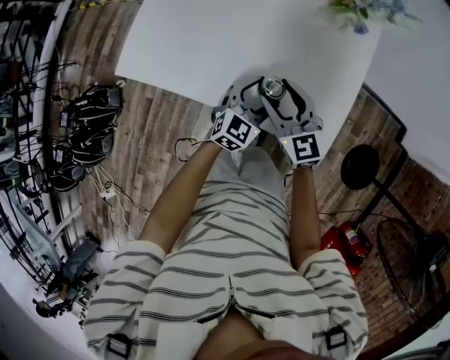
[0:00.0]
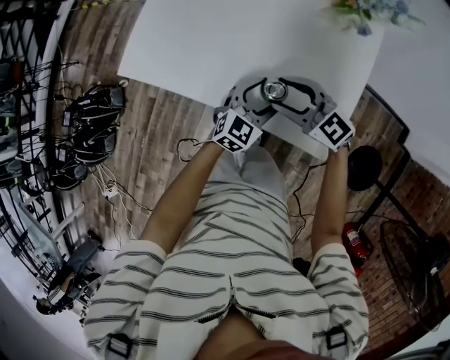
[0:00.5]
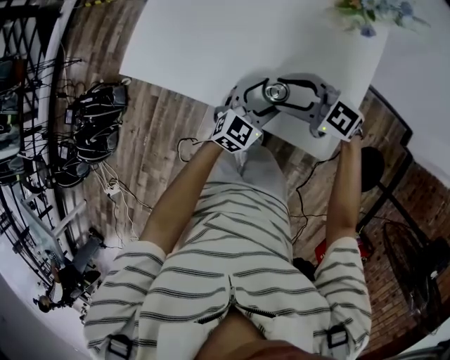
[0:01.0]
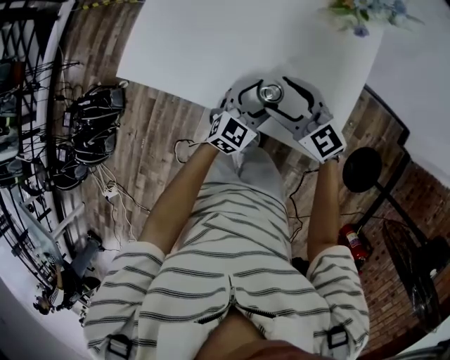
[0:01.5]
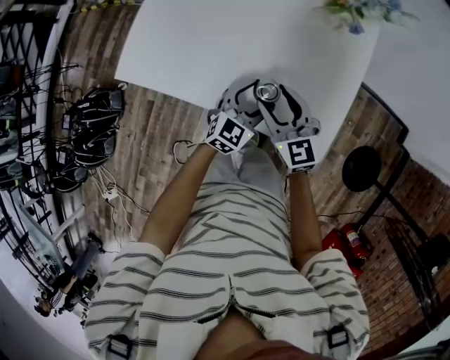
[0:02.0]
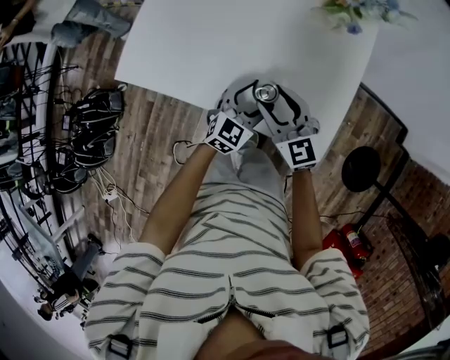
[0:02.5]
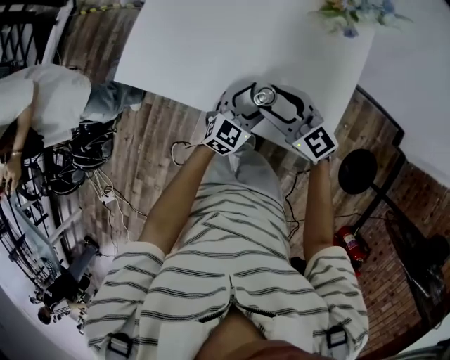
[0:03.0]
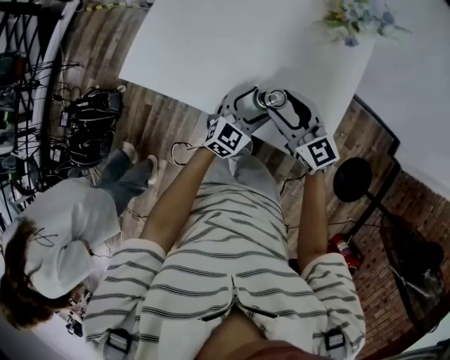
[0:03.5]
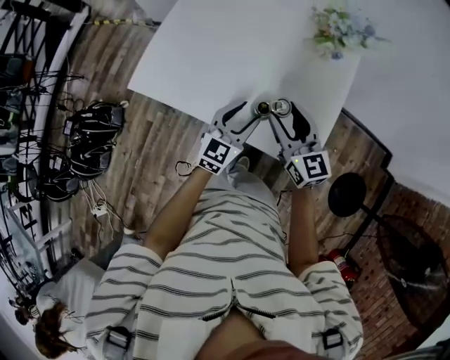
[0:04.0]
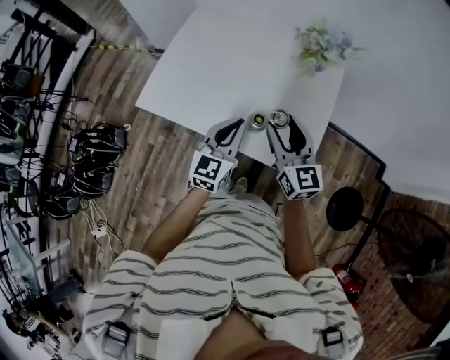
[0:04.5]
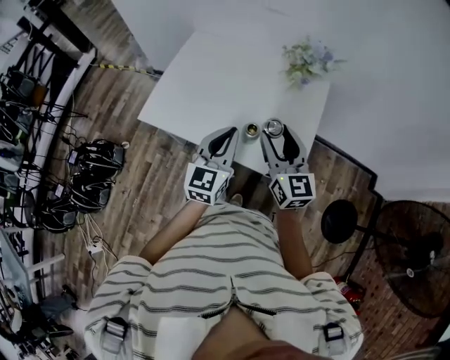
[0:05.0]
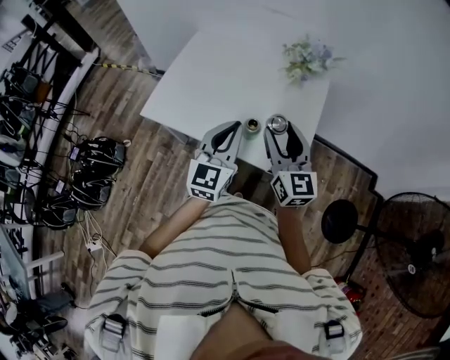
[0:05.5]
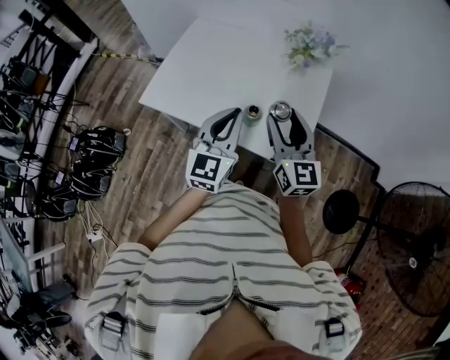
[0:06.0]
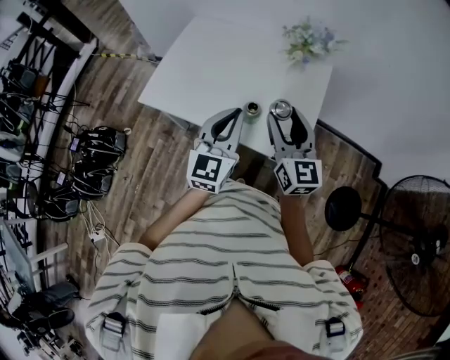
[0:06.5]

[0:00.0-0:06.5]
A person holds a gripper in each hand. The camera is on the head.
0:02.0 to 0:04.5: The two grippers go some 15 cm upward. The left gripper turns by approximately 30 degrees, and closes its fingers.
0:04.5 to 0:06.5: Both grippers travel together upward and backward, roughly 10 cm.

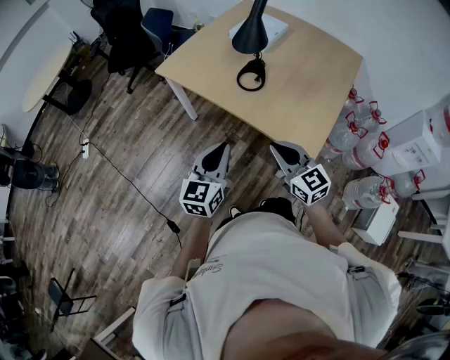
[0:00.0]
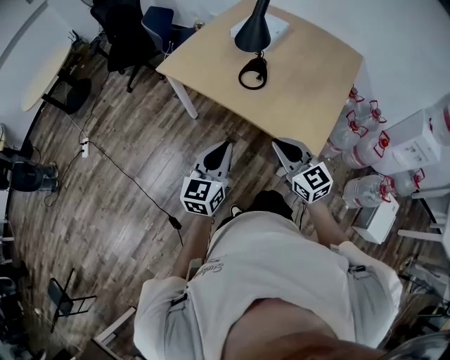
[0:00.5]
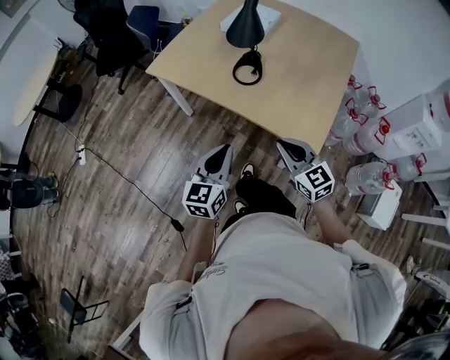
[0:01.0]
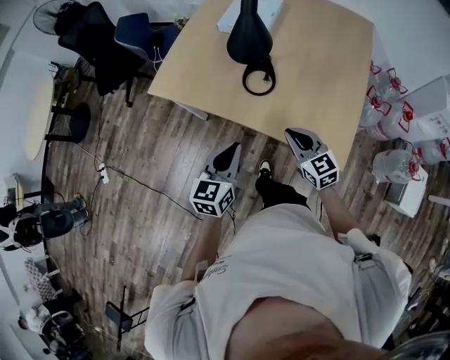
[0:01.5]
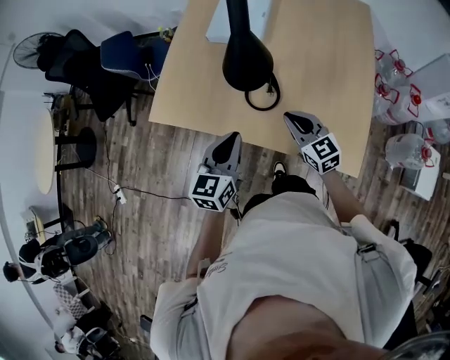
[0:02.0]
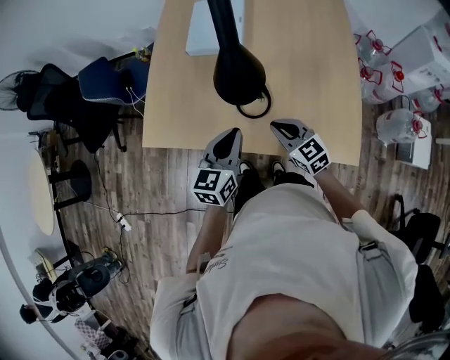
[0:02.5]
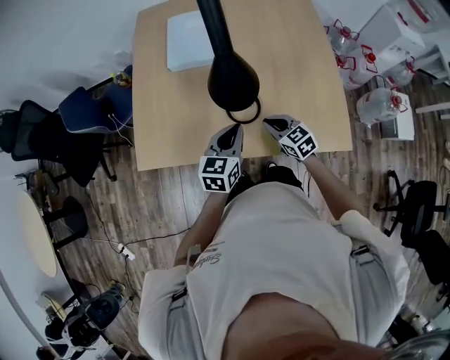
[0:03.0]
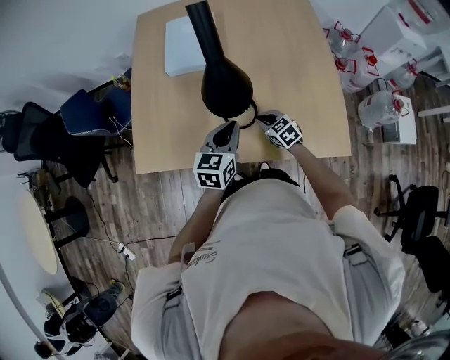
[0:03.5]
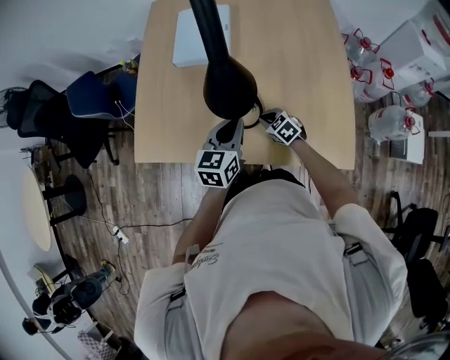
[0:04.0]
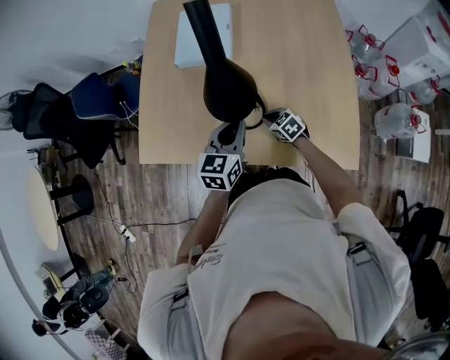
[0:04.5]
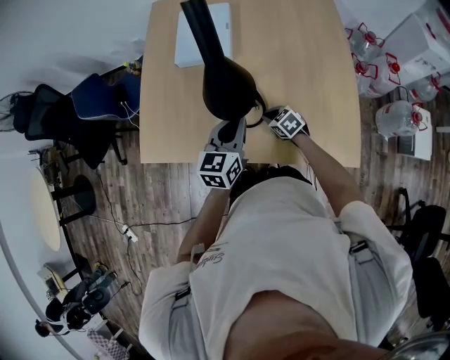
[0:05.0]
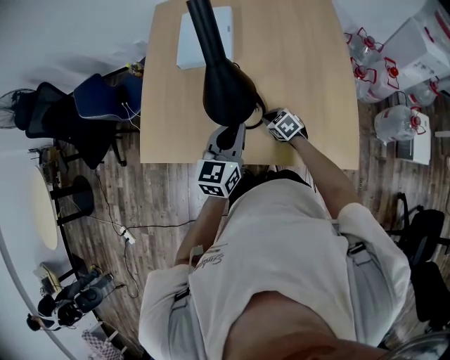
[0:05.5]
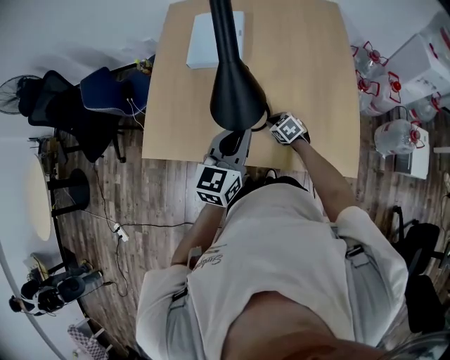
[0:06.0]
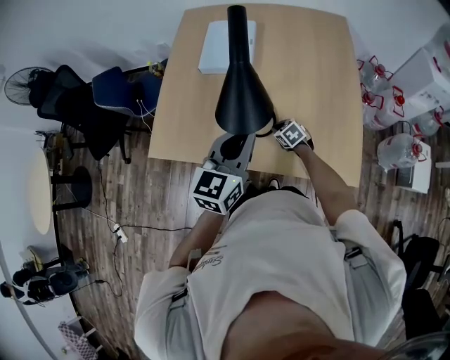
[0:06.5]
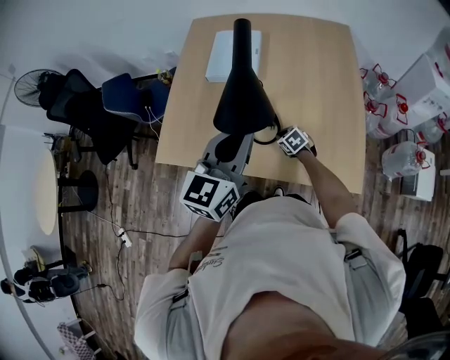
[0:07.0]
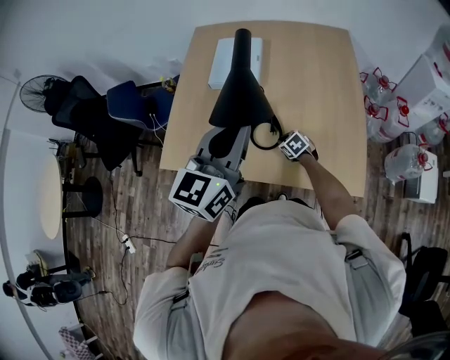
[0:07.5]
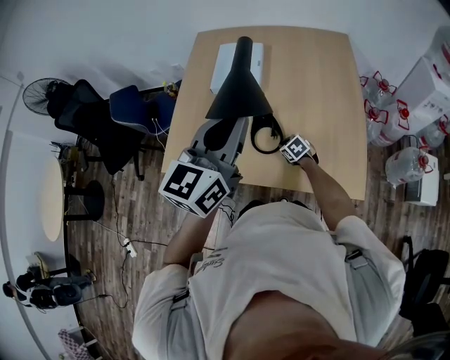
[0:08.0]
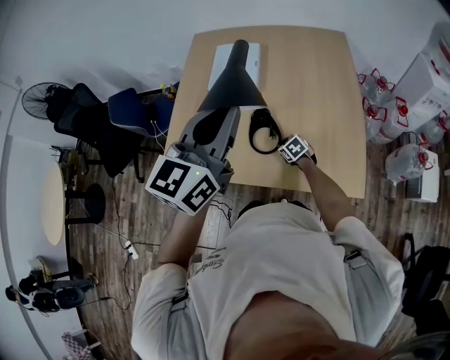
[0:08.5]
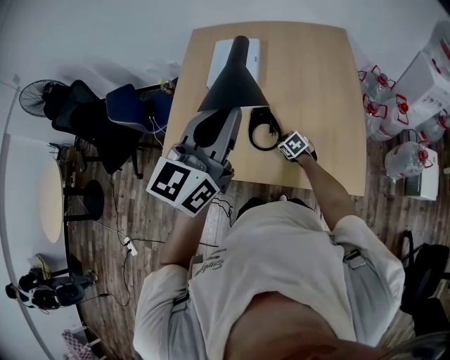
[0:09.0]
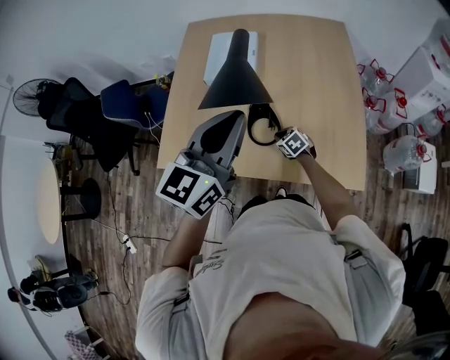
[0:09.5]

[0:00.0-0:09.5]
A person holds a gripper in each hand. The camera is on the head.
0:00.0 to 0:02.0: Both grippers move forward, approximately 30 cm. The left gripper changes its angle by approximately 20 degrees.
0:02.0 to 0:04.0: The left gripper is displaced forward and downward by some 15 cm; the right gripper moves downward and forward, some 20 cm, and tips its fingers downward by some 30 degrees.
0:04.0 to 0:05.5: The grippers stay close to where they were, moving slightly.
0:05.5 to 0:07.5: The left gripper is displaced upward by about 20 cm.
0:07.5 to 0:09.5: The grippers move only a little.

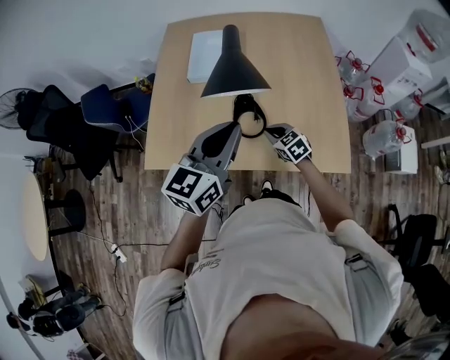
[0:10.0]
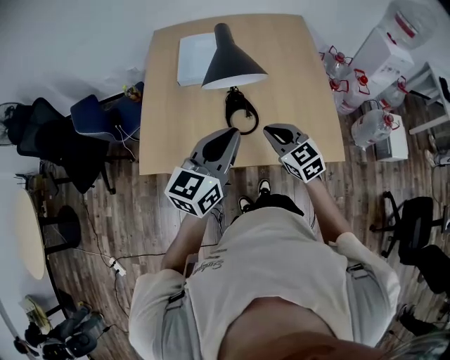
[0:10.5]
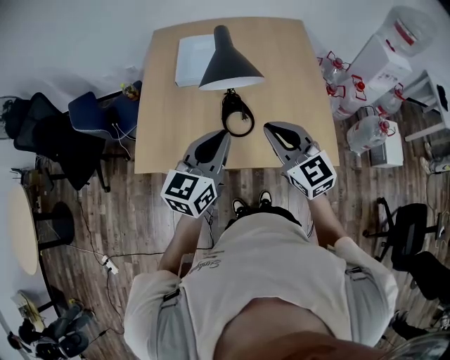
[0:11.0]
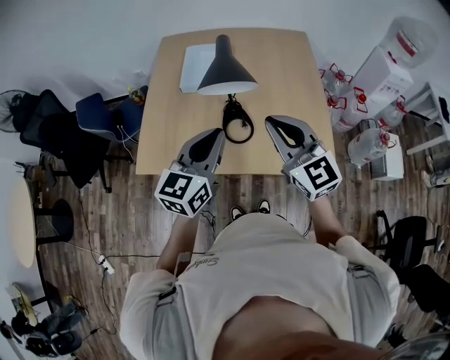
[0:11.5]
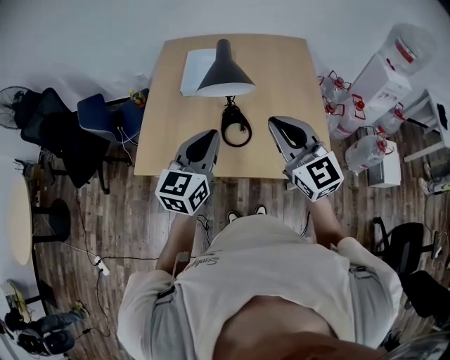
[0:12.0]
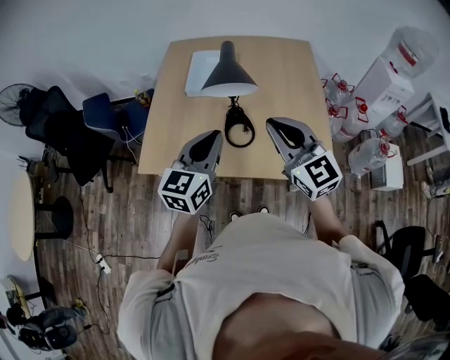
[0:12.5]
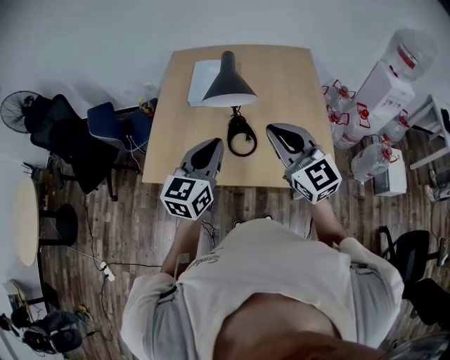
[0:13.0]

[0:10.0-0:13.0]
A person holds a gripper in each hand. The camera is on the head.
0:10.0 to 0:11.5: The right gripper shifts approximately 35 cm upward, and points its fingers roughly 40 degrees further upward.
0:11.5 to 0:13.0: The grippers make only small movements.

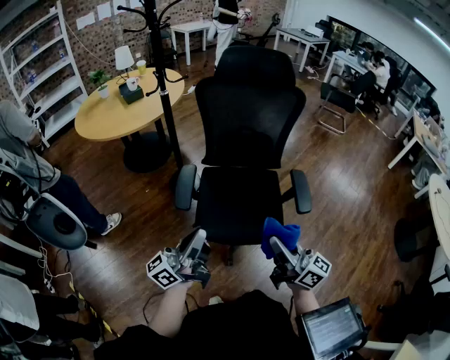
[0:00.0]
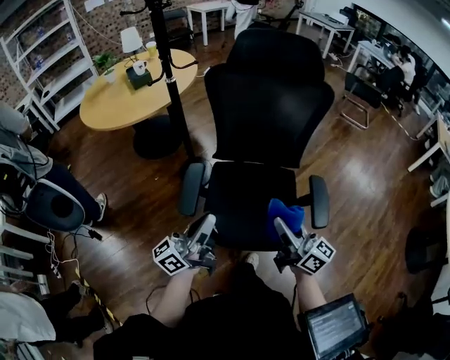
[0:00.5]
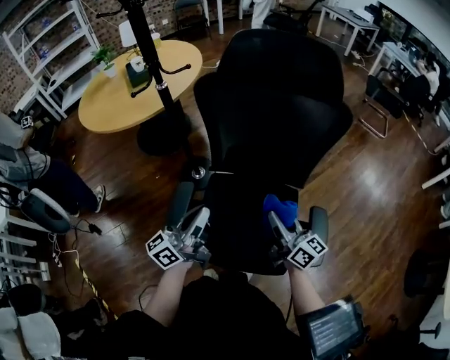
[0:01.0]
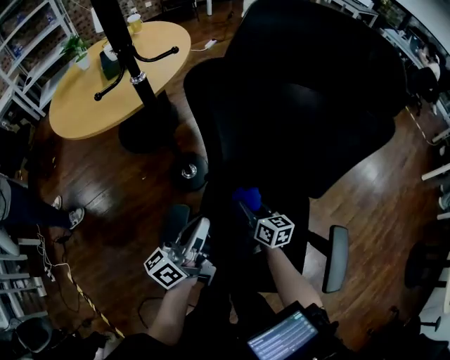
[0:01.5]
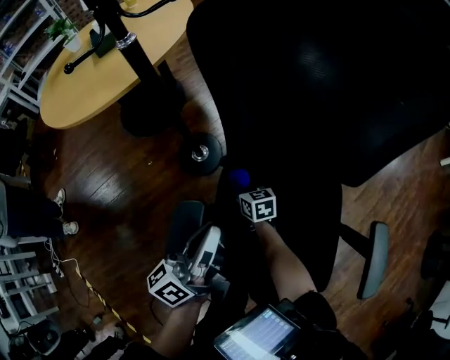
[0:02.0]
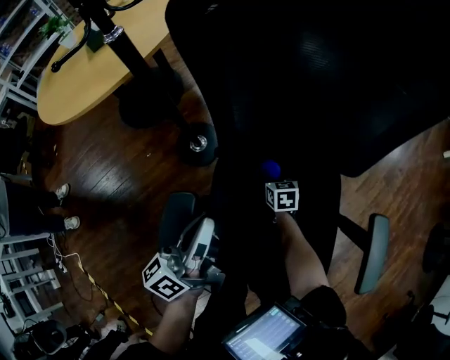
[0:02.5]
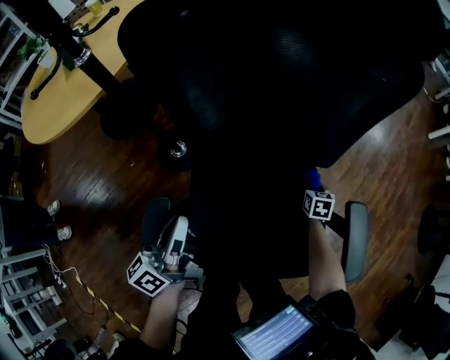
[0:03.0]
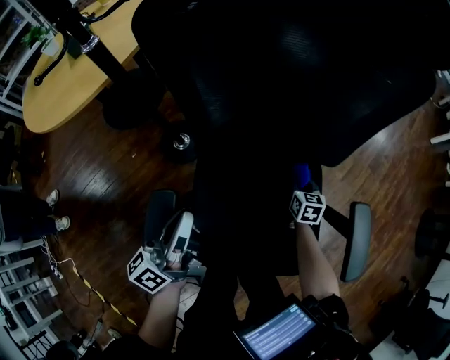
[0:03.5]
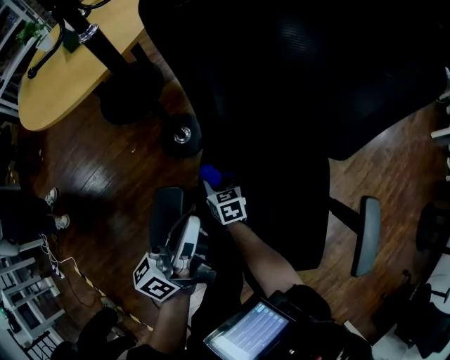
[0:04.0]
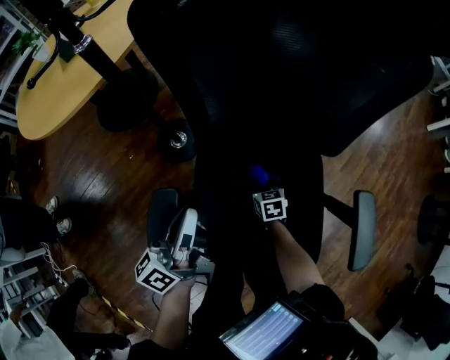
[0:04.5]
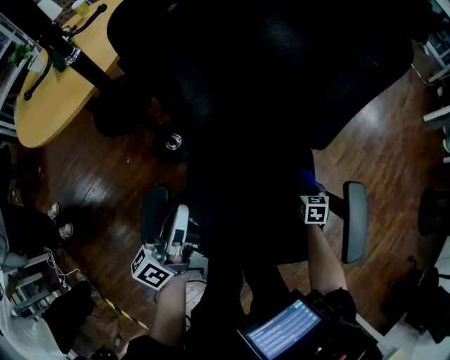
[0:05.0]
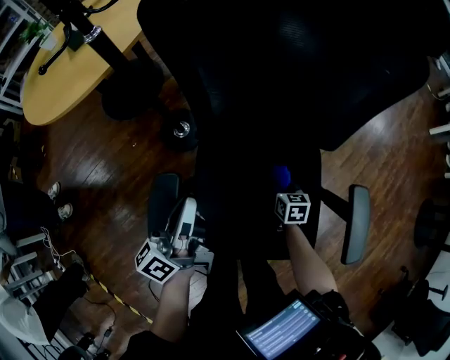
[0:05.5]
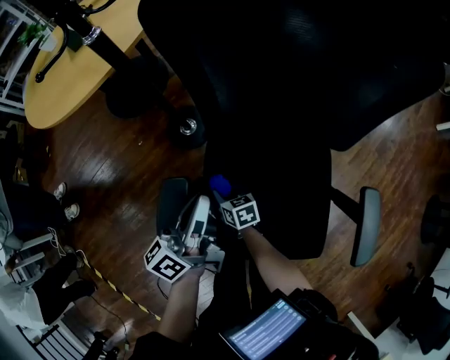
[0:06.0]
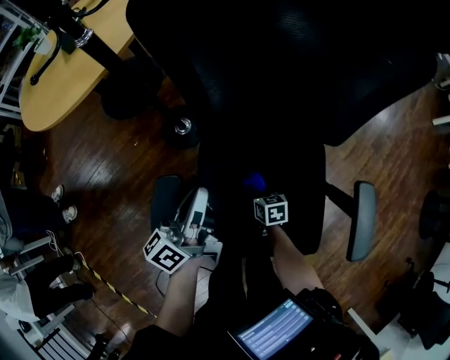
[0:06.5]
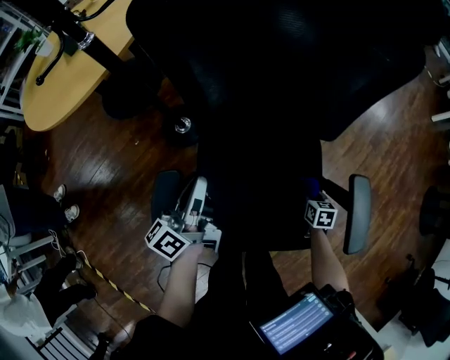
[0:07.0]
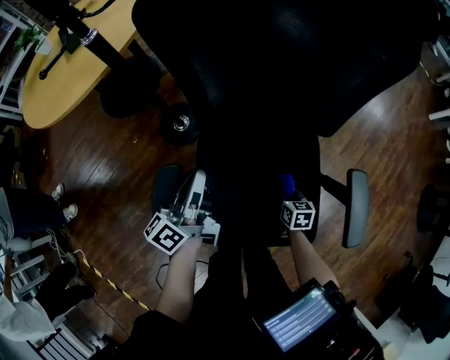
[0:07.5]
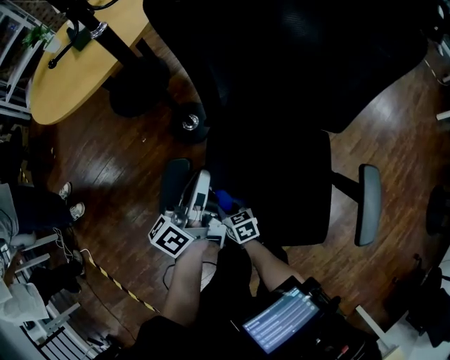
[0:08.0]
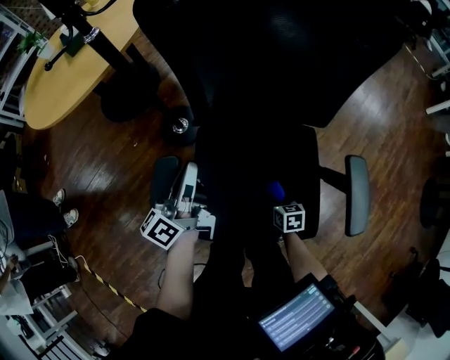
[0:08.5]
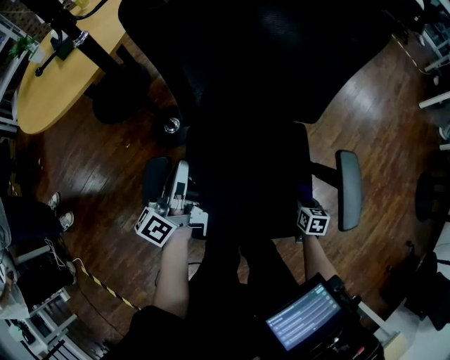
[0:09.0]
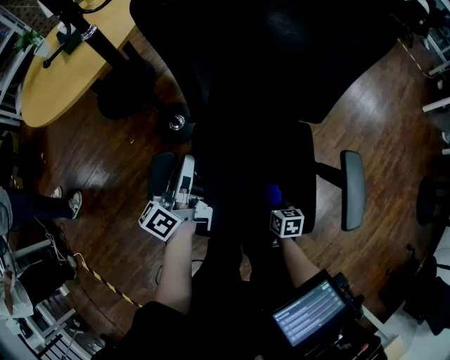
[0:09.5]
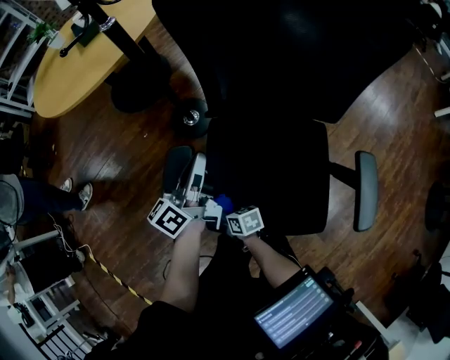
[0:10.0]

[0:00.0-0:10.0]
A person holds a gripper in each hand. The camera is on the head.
0:00.0 to 0:02.0: The right gripper travels forward and downward by about 70 cm, and points its fingers roughly 50 degrees further downward. The left gripper heads forward and downward, covering approximately 40 cm, and turns by approximately 30 degrees.
0:02.0 to 0:04.0: The right gripper travels backward by about 5 cm, and goes to the right and returns, roughly 40 cm each way.
0:06.0 to 0:08.0: The right gripper heads backward, covering approximately 10 cm, and reaches about 35 cm to the right, then returns.
